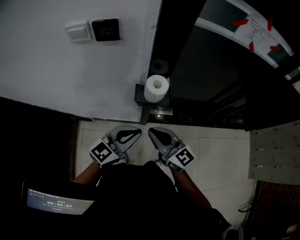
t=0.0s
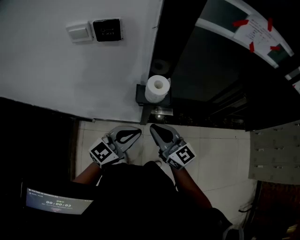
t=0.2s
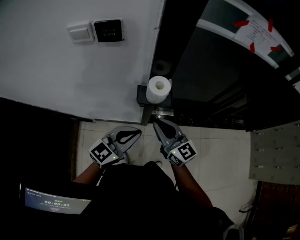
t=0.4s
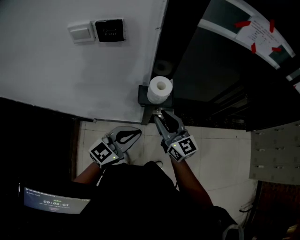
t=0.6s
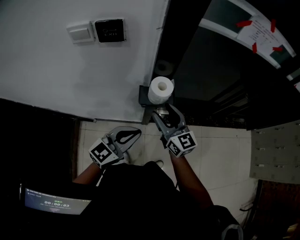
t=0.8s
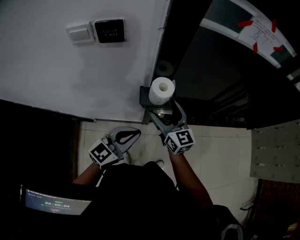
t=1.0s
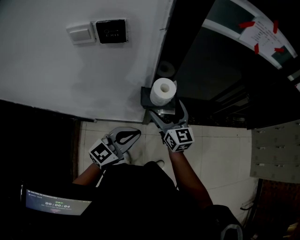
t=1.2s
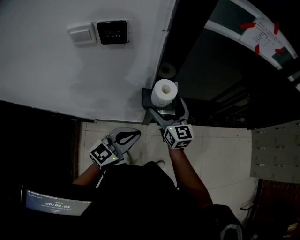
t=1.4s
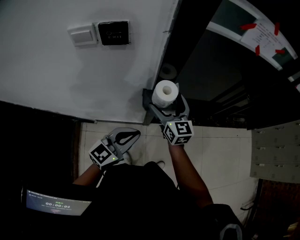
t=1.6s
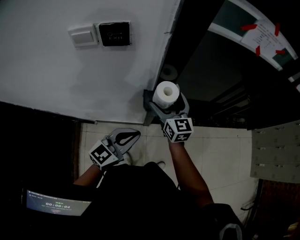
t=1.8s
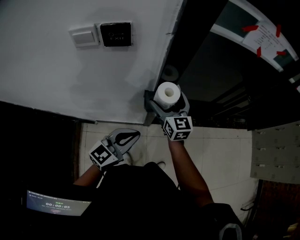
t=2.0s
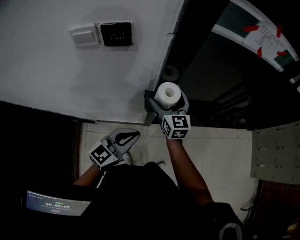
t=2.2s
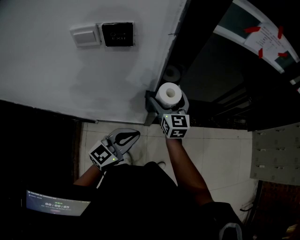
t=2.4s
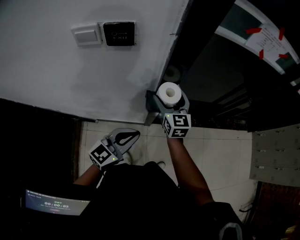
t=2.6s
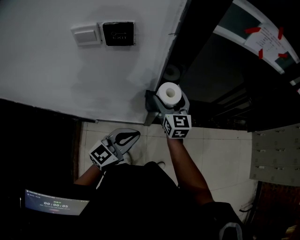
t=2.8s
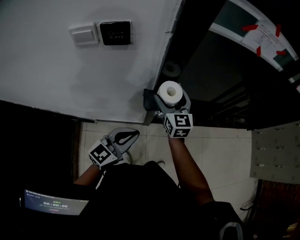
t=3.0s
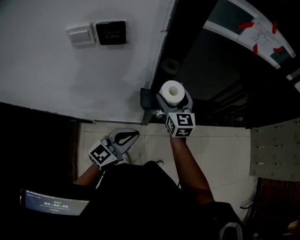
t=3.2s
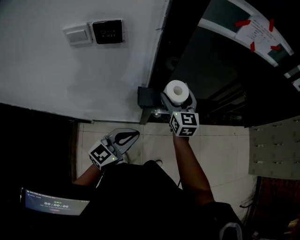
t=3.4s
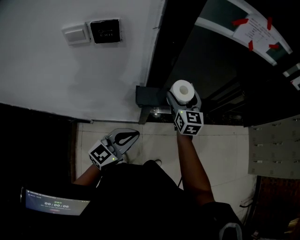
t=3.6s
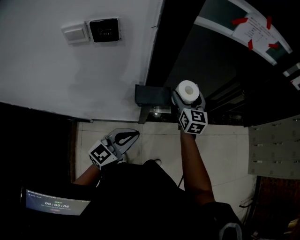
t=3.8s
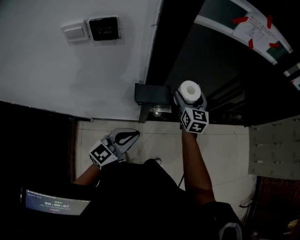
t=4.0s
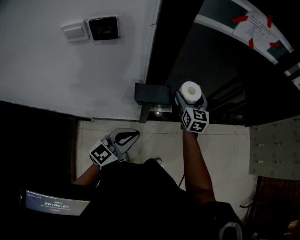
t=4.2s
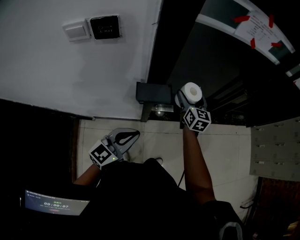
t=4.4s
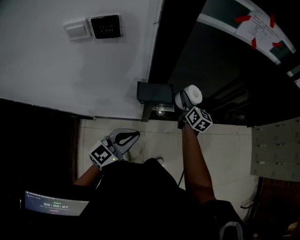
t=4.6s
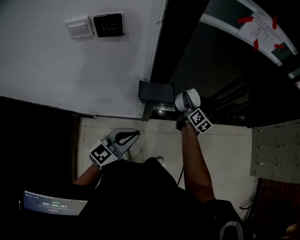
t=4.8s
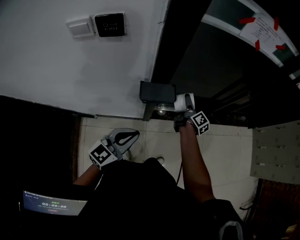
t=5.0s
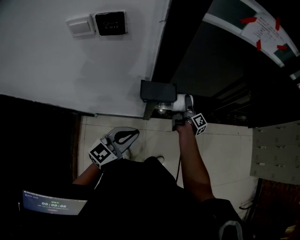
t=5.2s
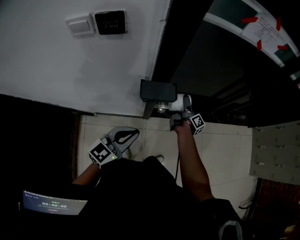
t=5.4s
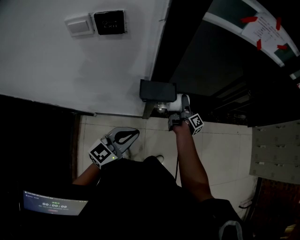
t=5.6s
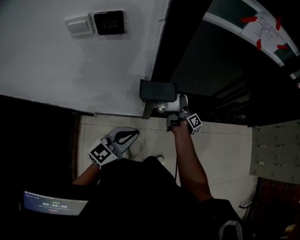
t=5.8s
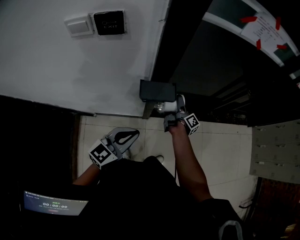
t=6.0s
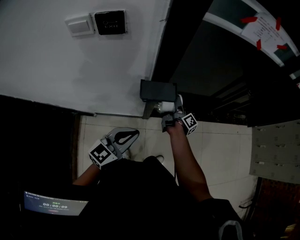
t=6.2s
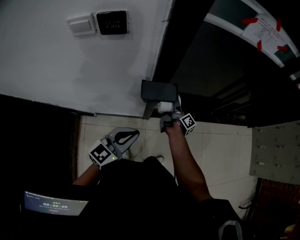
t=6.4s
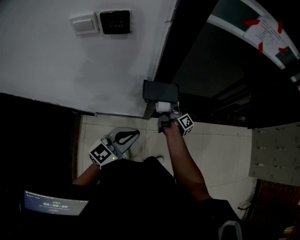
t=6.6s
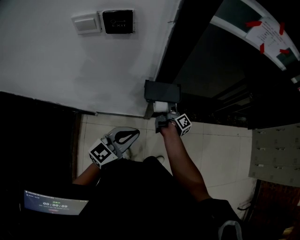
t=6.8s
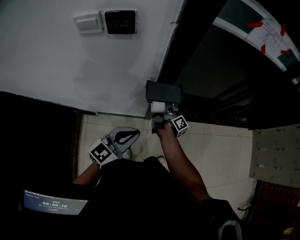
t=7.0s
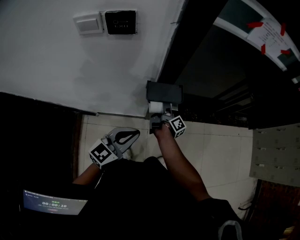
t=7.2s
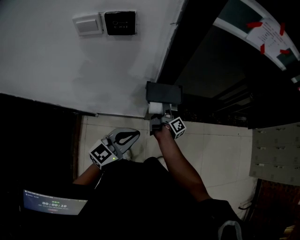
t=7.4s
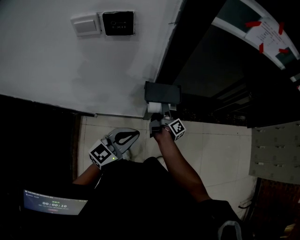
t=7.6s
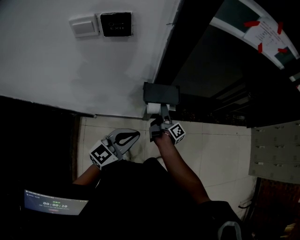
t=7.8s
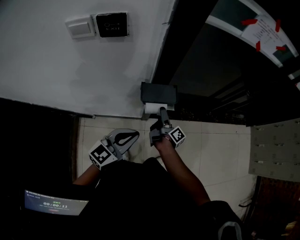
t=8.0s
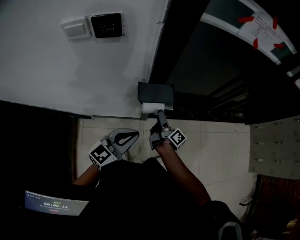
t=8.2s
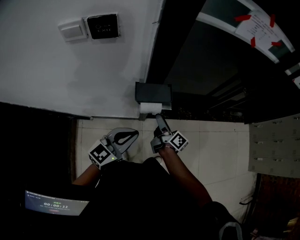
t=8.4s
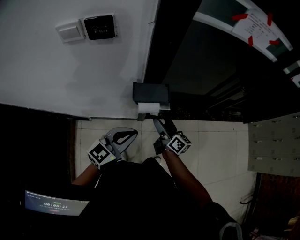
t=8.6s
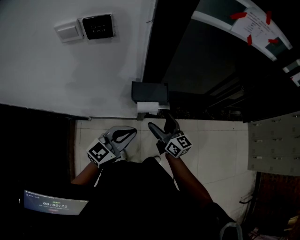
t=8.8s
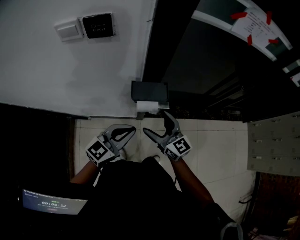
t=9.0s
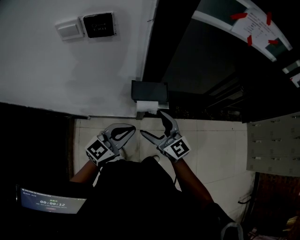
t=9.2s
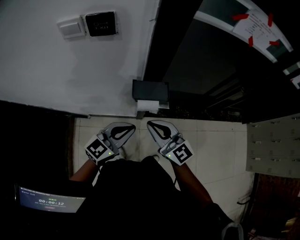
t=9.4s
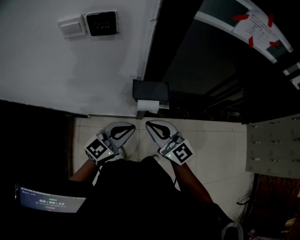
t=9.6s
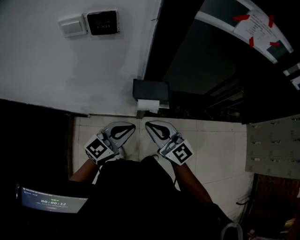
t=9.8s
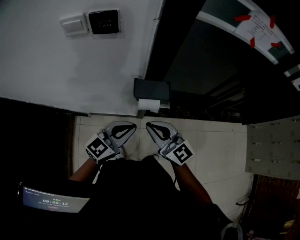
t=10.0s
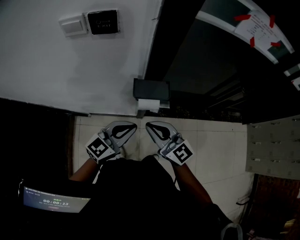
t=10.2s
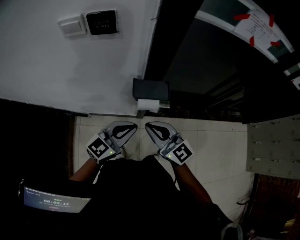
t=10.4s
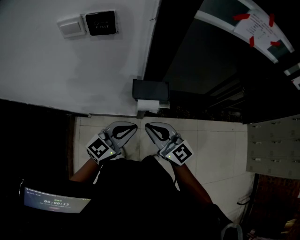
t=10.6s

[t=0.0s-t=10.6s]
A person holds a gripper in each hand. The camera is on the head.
t=0.0s to t=1.6s: The left gripper shifts by some 5 cm. Meanwhile the right gripper shifts approximately 15 cm forward, swivels roughly 30 degrees, and opens up.
t=1.6s to t=3.0s: The grippers move only a little.
t=3.0s to t=4.6s: The right gripper moves to the right, forward and downward, some 20 cm, and rotates some 30 degrees.
t=4.6s to t=6.0s: The right gripper heads downward, covering approximately 10 cm, and rotates around the line of its fingers by some 70 degrees, clockwise from behind.
t=6.0s to t=7.6s: The right gripper moves to the left and backward, approximately 10 cm.
t=7.6s to t=9.0s: The right gripper moves upward and backward, some 20 cm, and rotates around the line of its fingers by some 80 degrees, counterclockwise from behind.
t=9.0s to t=10.6s: The right gripper moves about 5 cm, and closes up.

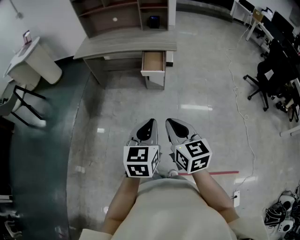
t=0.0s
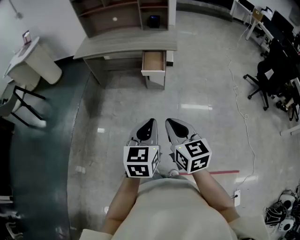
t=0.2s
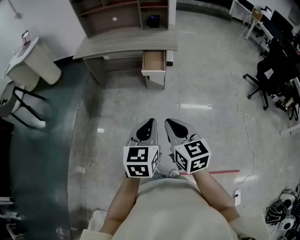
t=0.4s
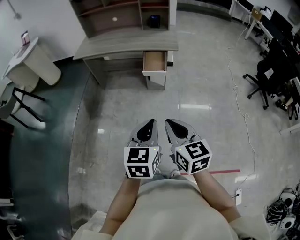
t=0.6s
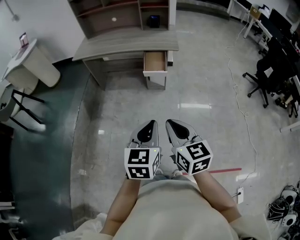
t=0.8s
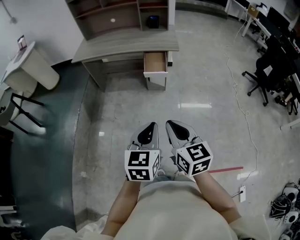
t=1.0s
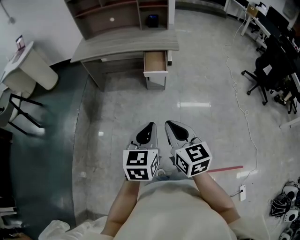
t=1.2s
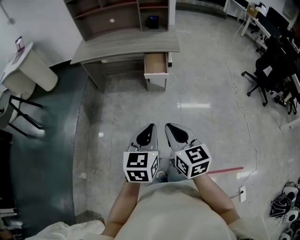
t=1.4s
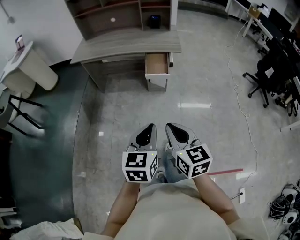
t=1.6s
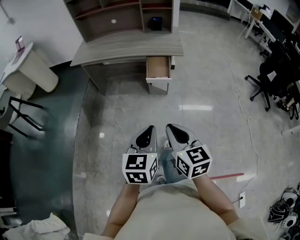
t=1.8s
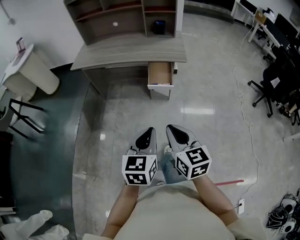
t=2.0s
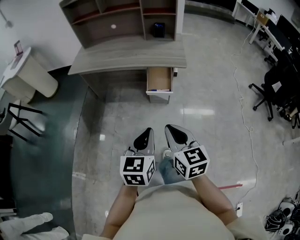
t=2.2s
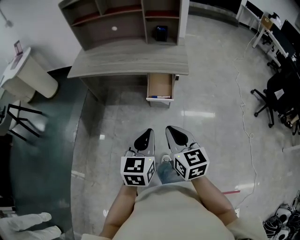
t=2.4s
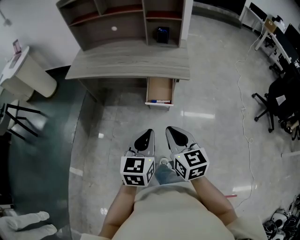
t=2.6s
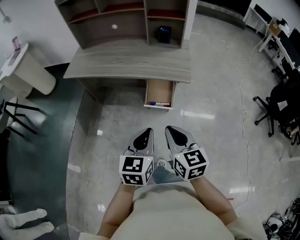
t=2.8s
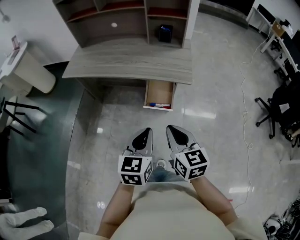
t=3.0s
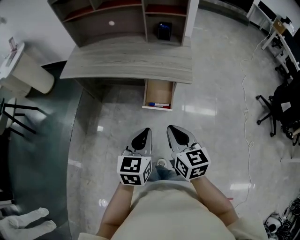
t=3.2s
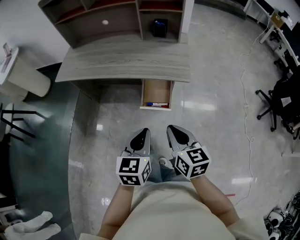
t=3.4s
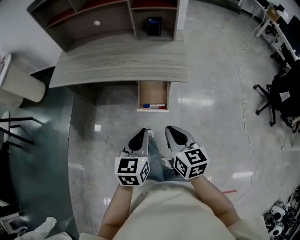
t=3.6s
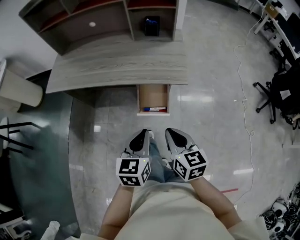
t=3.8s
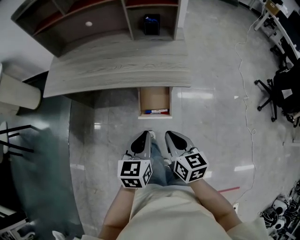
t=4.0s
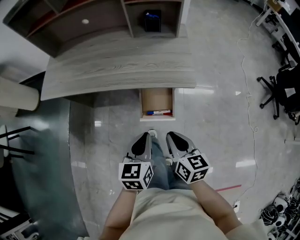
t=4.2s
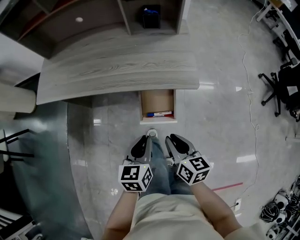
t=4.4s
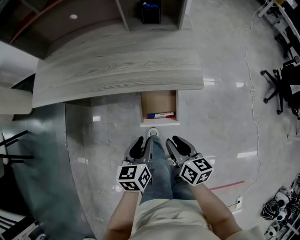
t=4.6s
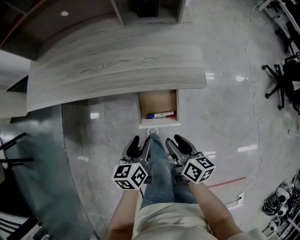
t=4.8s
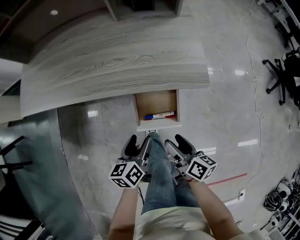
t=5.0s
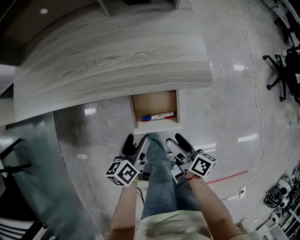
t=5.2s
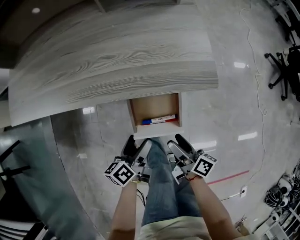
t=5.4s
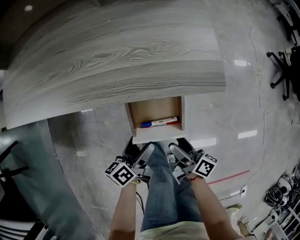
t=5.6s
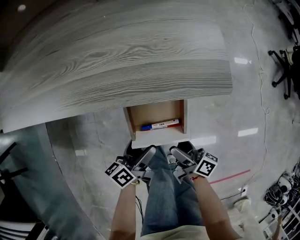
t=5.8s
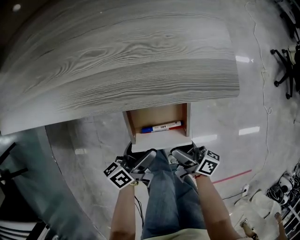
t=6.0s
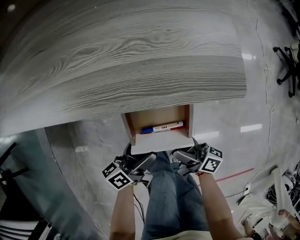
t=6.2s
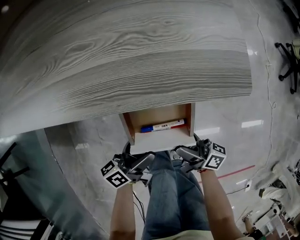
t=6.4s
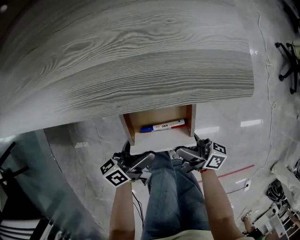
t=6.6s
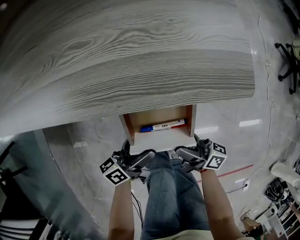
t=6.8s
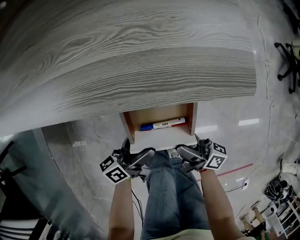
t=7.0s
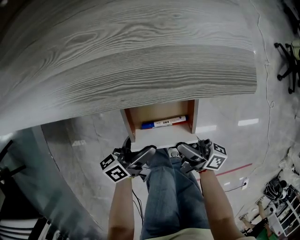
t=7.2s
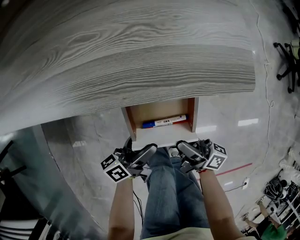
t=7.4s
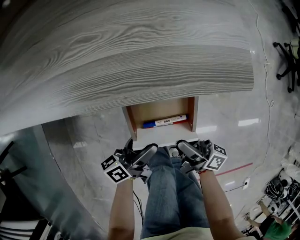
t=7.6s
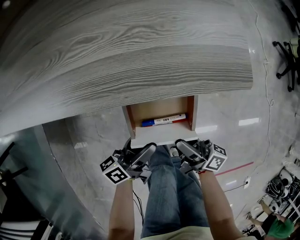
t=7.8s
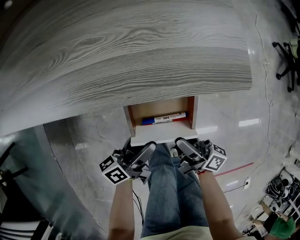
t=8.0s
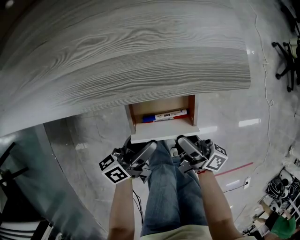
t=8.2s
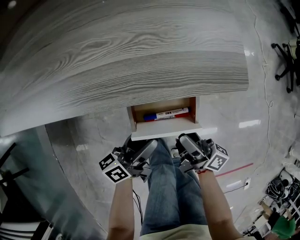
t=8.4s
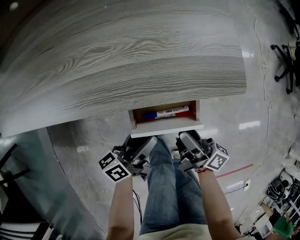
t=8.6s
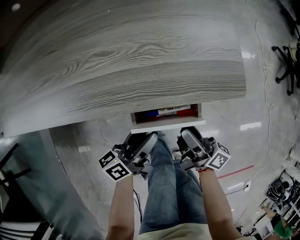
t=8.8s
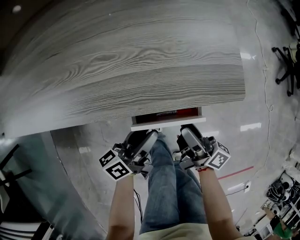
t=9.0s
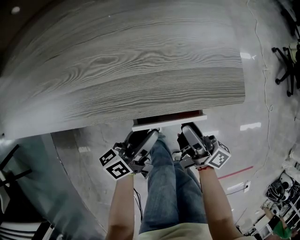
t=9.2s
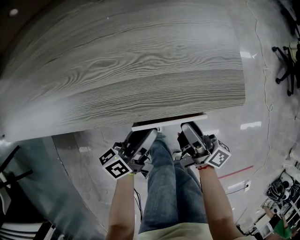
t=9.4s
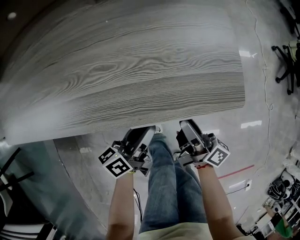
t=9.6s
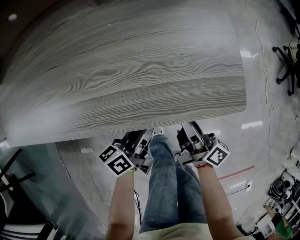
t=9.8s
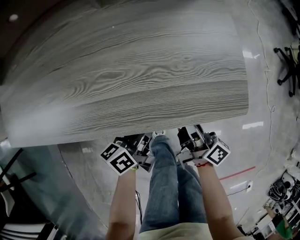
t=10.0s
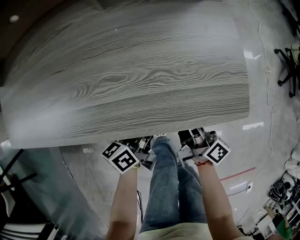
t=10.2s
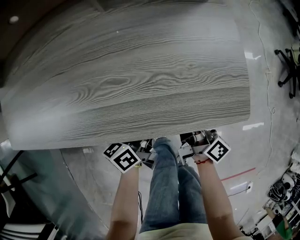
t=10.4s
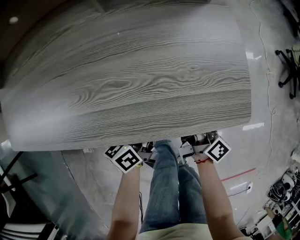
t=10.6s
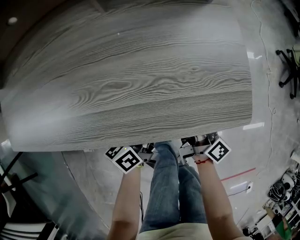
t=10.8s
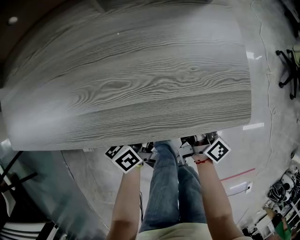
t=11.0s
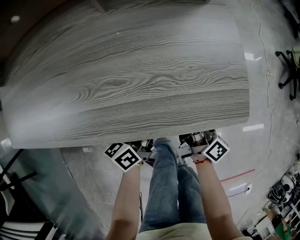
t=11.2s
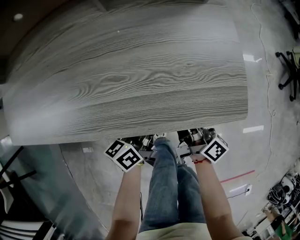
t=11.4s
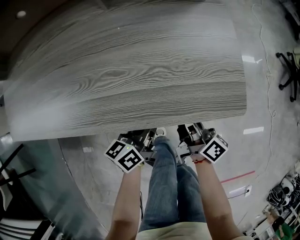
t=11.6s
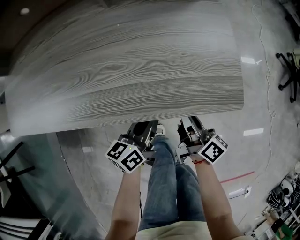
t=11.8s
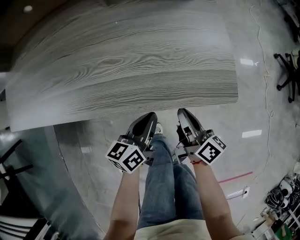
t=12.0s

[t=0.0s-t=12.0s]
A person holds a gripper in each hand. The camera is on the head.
t=0.0s to t=1.6s: The two grippers go about 10 cm to the left and forward.
t=1.6s to t=3.0s: The two grippers go some 35 cm forward.
t=3.0s to t=4.4s: The right gripper is displaced downward and forward by some 20 cm, and rotates roughly 30 degrees. Meanwhile the left gripper heads forward and downward, covering approximately 25 cm.
t=4.4s to t=6.0s: Both grippers move downward, some 25 cm. The right gripper changes its angle by roughly 50 degrees, and opens. The left gripper rotates around the line of its fingers by approximately 40 degrees, counterclockwise from behind, and opens up.
t=6.0s to t=7.6s: The grippers move only a little.
t=7.6s to t=9.0s: Both grippers travel together forward and upward, roughly 10 cm. The left gripper closes up.
t=9.0s to t=10.4s: The grippers both shift forward by about 10 cm. The right gripper closes its fingers, while the left gripper closes its fingers.
t=10.4s to t=12.0s: The left gripper shifts by roughly 5 cm. Meanwhile the right gripper shifts by roughly 5 cm.

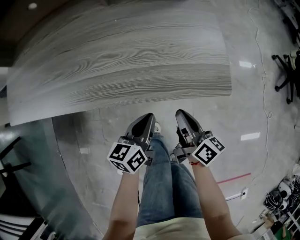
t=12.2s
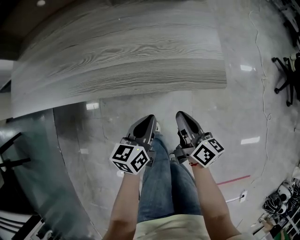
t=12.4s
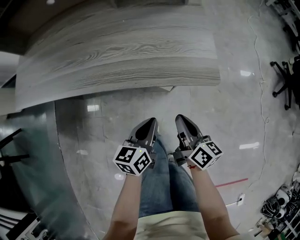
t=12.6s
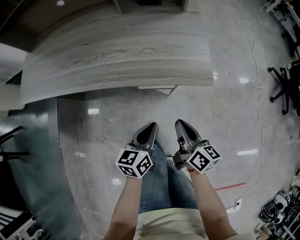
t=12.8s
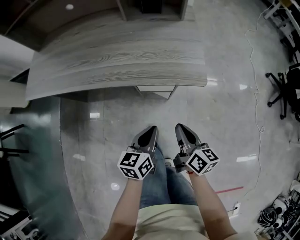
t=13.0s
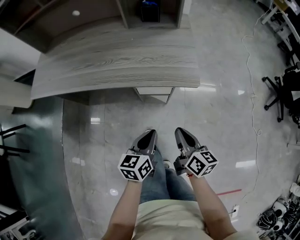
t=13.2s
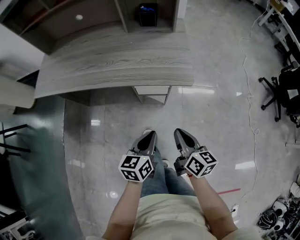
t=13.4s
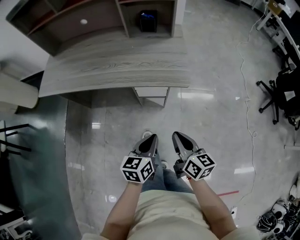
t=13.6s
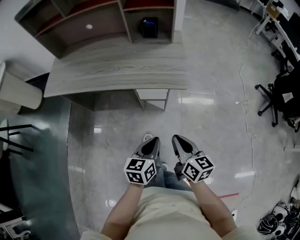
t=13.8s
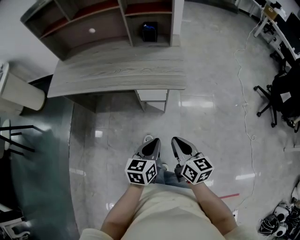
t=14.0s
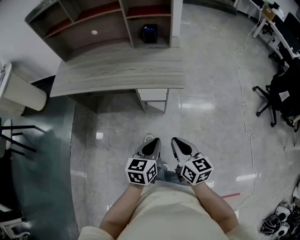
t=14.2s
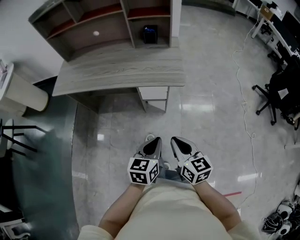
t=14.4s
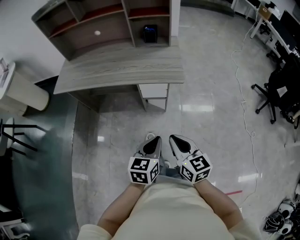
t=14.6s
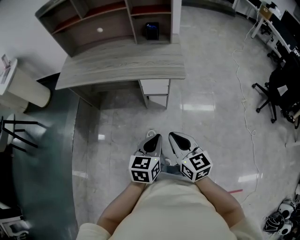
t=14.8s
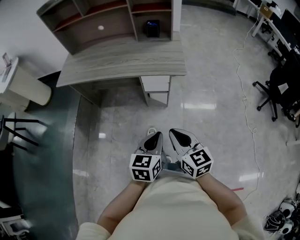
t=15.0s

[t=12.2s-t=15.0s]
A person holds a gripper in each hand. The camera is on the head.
t=12.2s to t=13.6s: The left gripper shifts some 25 cm backward and upward. Meanwhile the right gripper heads upward and backward, covering some 30 cm, and turns by approximately 20 degrees.
t=13.6s to t=15.0s: Both grippers move backward and upward, some 20 cm. The right gripper turns by roughly 30 degrees.
